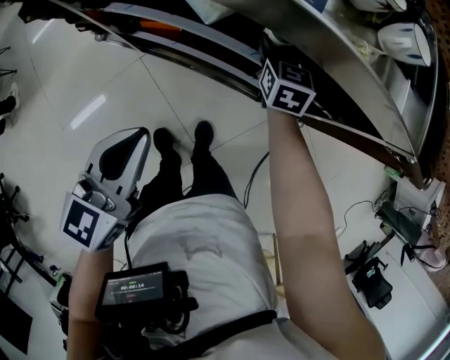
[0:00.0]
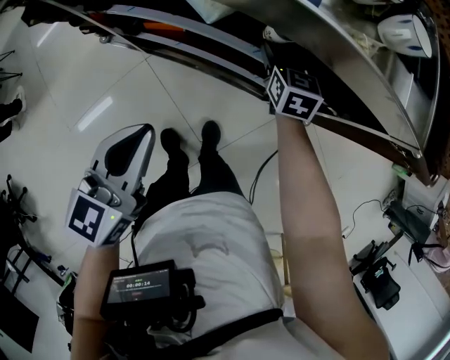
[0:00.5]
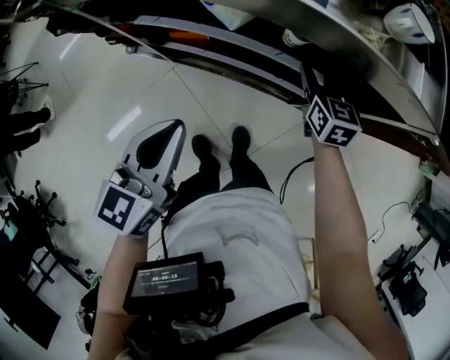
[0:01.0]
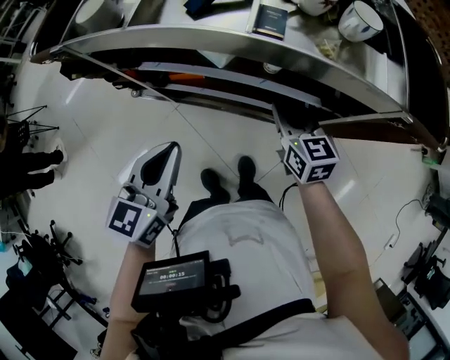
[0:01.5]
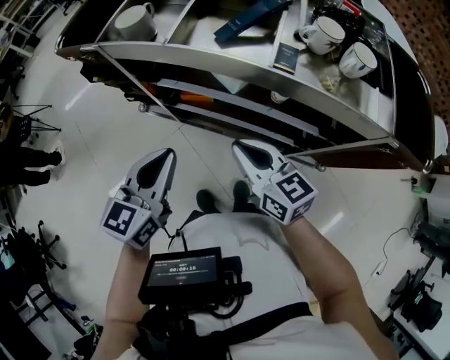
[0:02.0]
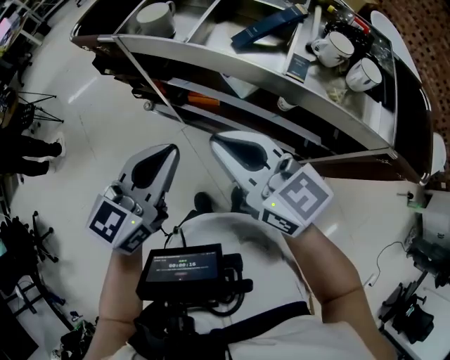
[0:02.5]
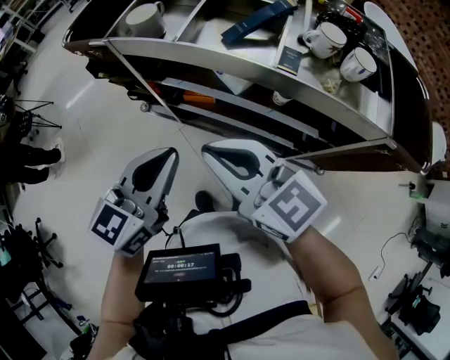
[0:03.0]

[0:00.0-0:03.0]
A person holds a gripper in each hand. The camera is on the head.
0:00.0 to 0:01.5: The right gripper shifts approximately 15 cm backward and upward, and closes up.
0:01.5 to 0:03.0: The right gripper heads to the left and upward, covering about 30 cm, and changes its angle by roughly 40 degrees; the left gripper goes roughly 10 cm upward.

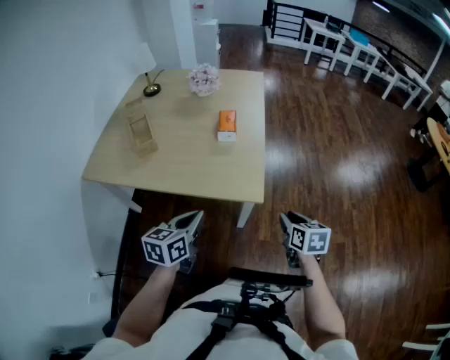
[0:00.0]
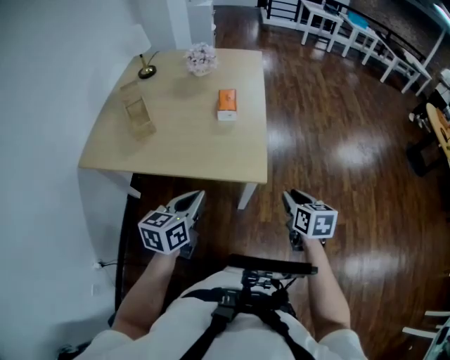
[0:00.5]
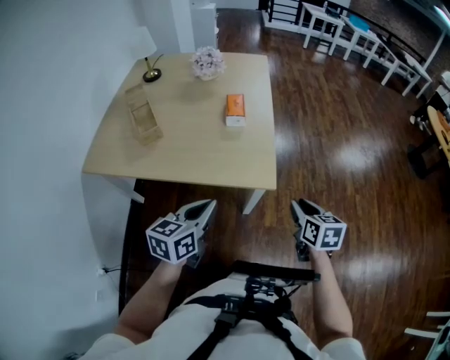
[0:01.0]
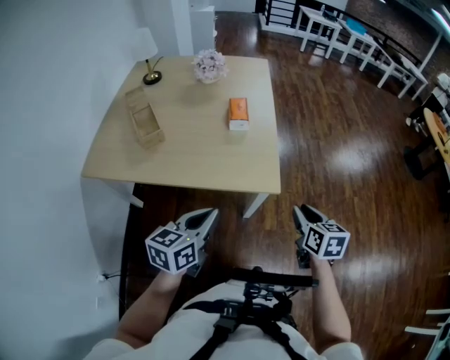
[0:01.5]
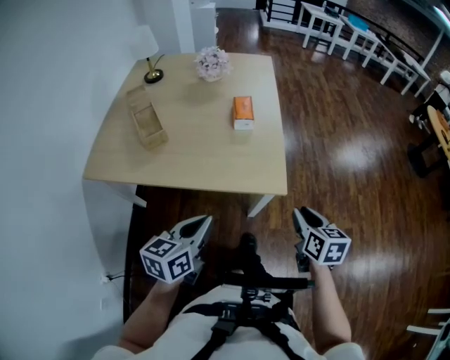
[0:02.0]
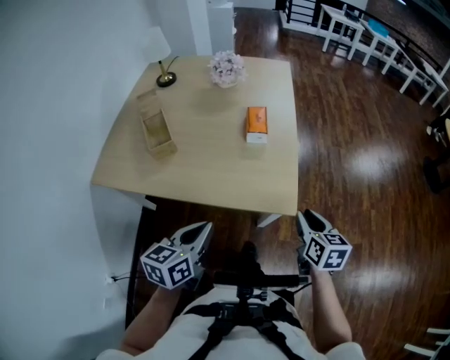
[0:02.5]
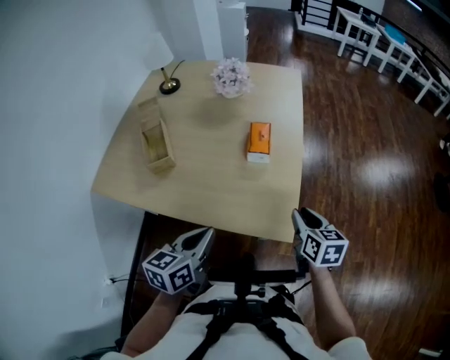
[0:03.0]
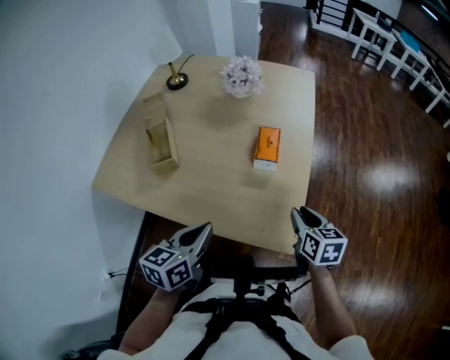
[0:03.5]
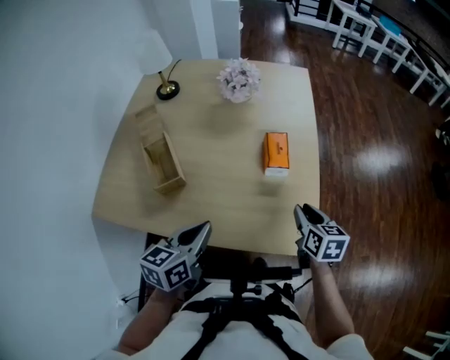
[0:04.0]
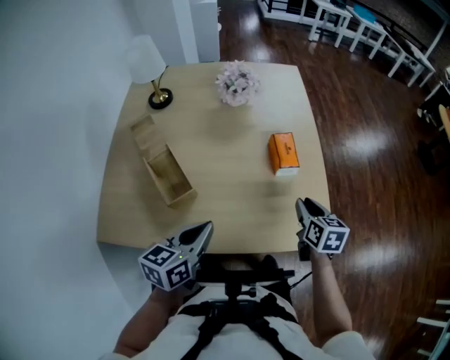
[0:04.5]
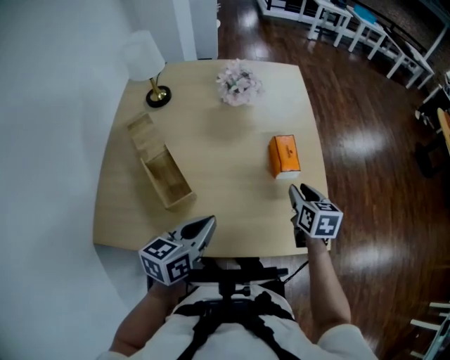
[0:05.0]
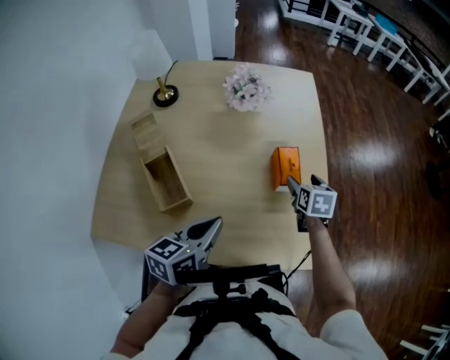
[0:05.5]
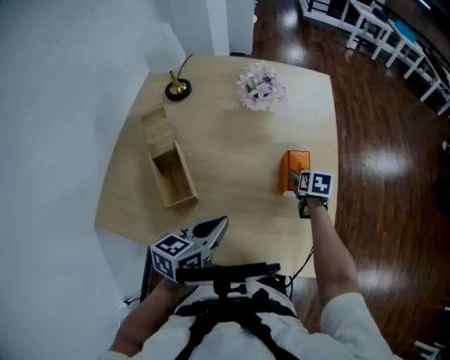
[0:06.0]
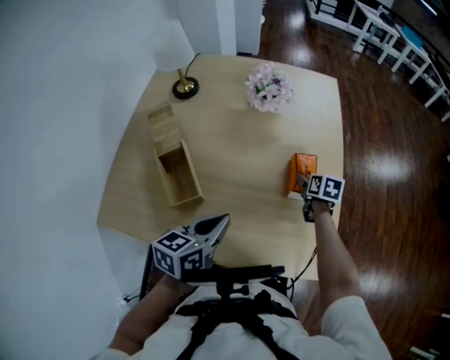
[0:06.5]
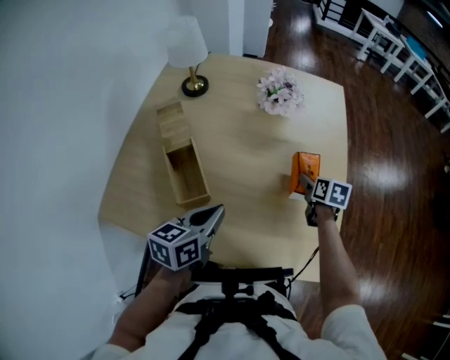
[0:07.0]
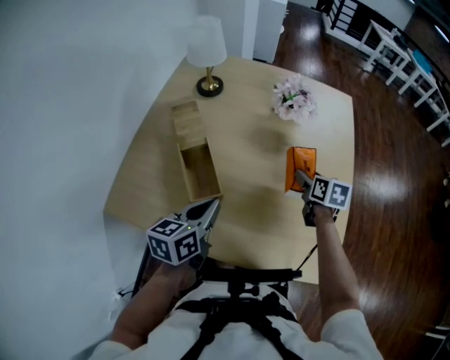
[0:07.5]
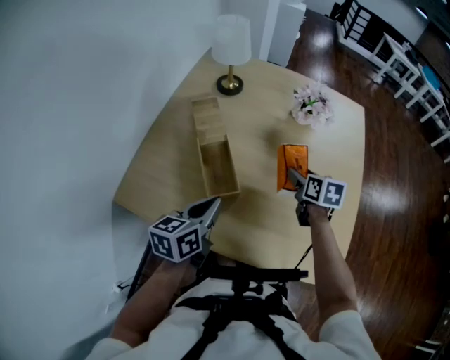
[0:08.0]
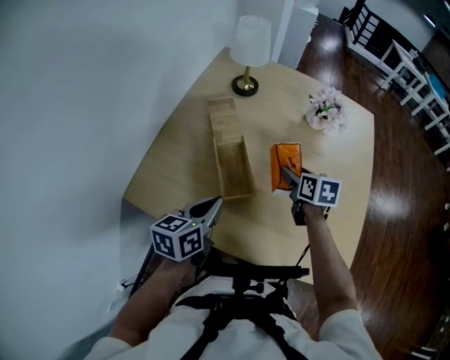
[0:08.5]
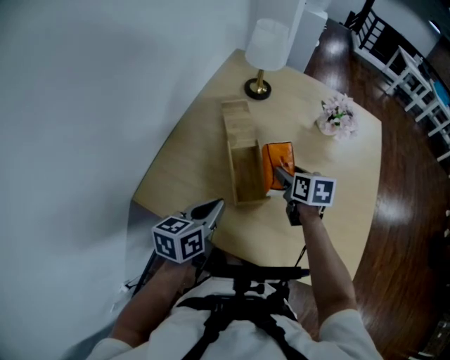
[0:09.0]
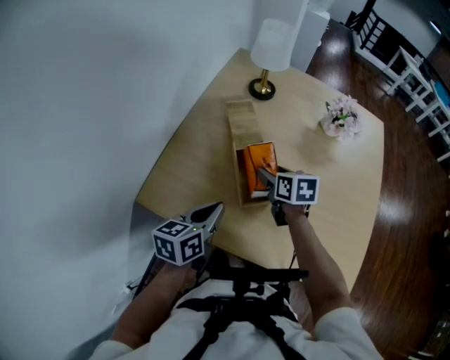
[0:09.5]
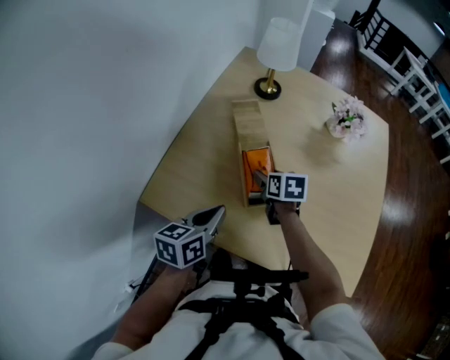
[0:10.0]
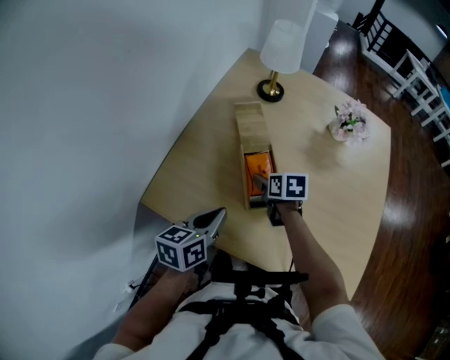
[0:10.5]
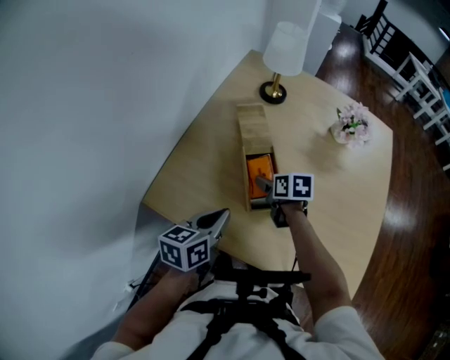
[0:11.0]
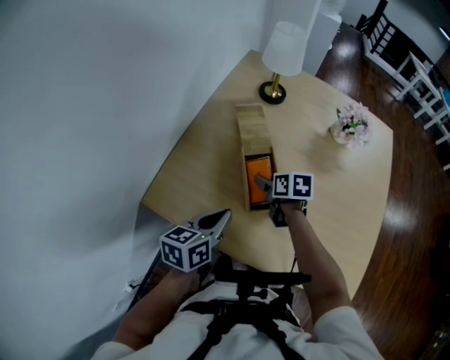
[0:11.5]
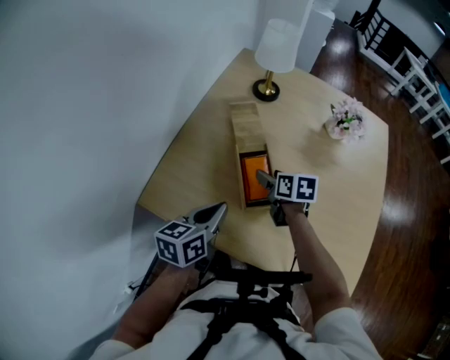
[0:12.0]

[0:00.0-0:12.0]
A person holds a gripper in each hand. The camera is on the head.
0:00.0 to 0:02.0: Both grippers move to the left, about 10 cm.
0:02.0 to 0:04.0: The left gripper heads forward and to the left, covering approximately 25 cm. Meanwhile the right gripper goes roughly 25 cm forward.
0:04.0 to 0:06.0: The left gripper moves forward, about 10 cm; the right gripper moves forward, downward and to the left, about 25 cm, and opens up.
0:06.0 to 0:08.0: The left gripper goes some 15 cm to the left. The right gripper shifts roughly 25 cm to the left and upward.
0:08.0 to 0:10.0: The right gripper travels to the left by about 25 cm. Meanwhile the left gripper travels to the left by approximately 10 cm.
0:10.0 to 0:12.0: There are only small adjustments of the grippers.

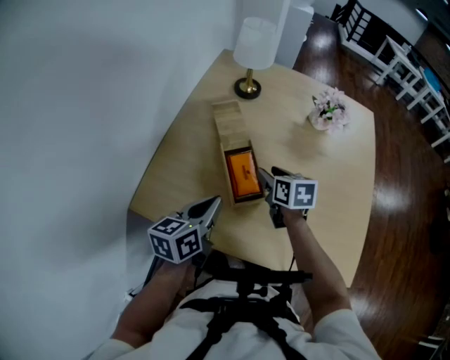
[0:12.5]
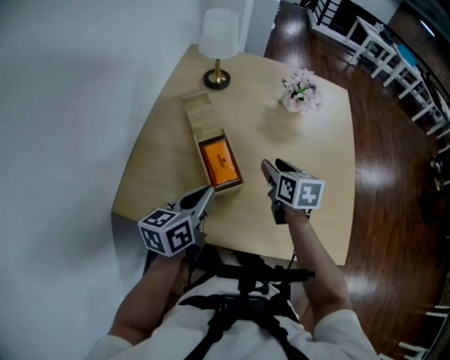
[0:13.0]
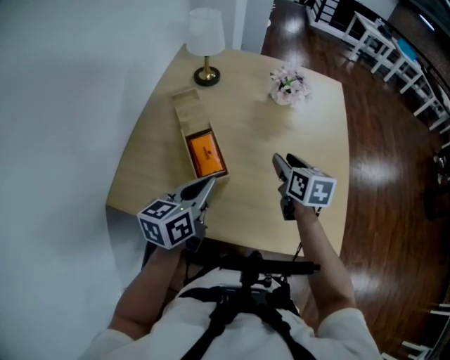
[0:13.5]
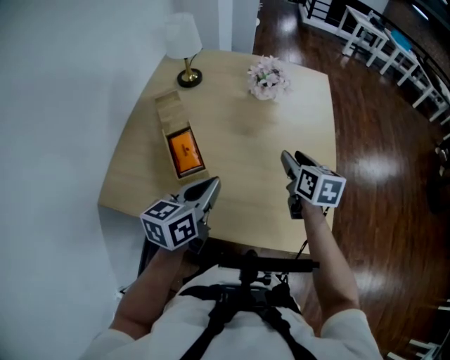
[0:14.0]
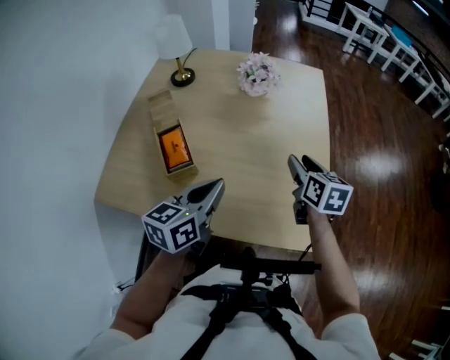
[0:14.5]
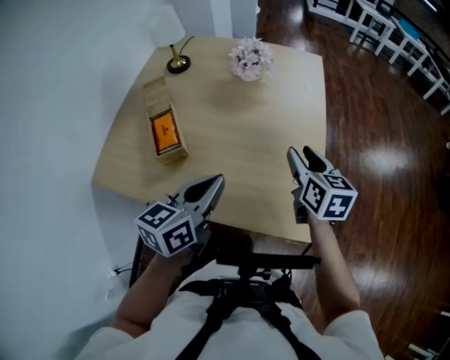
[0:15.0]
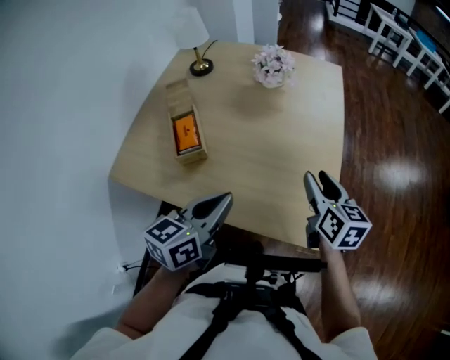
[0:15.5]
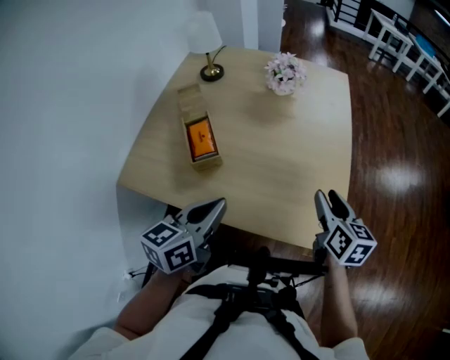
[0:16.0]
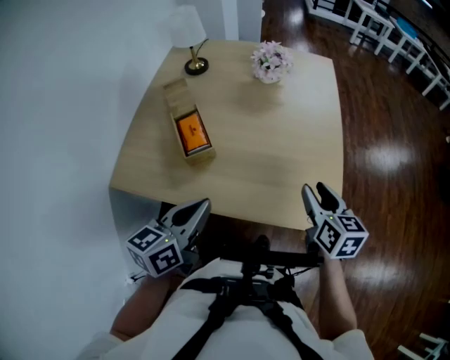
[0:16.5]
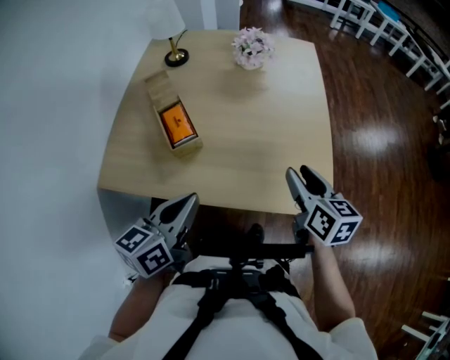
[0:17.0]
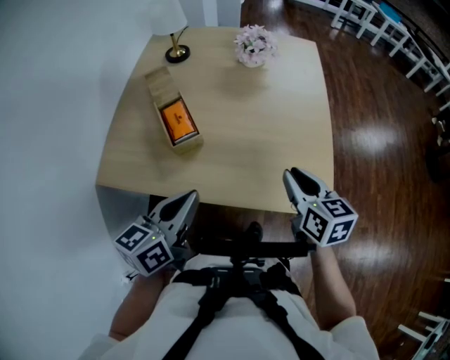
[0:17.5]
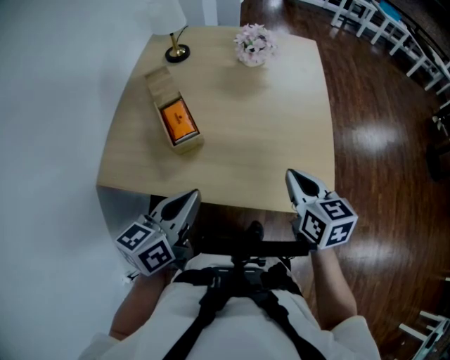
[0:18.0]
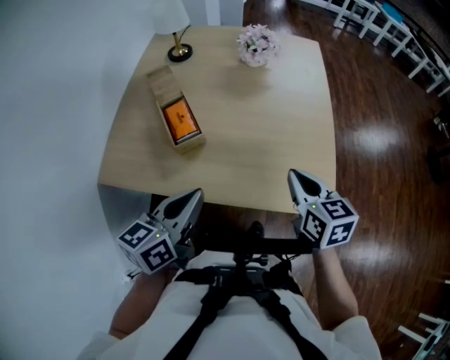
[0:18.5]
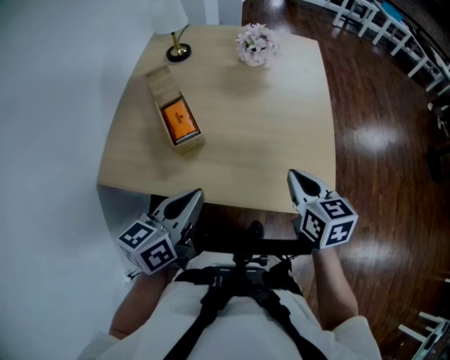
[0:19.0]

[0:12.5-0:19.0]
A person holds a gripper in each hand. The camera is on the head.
0:12.5 to 0:14.5: Both grippers travel together to the right, roughly 30 cm. The right gripper turns by roughly 20 degrees.
0:14.5 to 0:17.0: The left gripper goes about 15 cm backward and to the left. The right gripper moves backward, approximately 15 cm.
0:17.0 to 0:19.0: The right gripper closes.

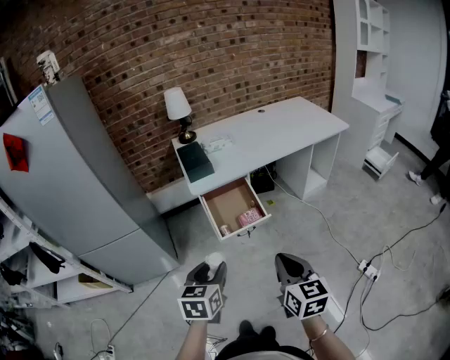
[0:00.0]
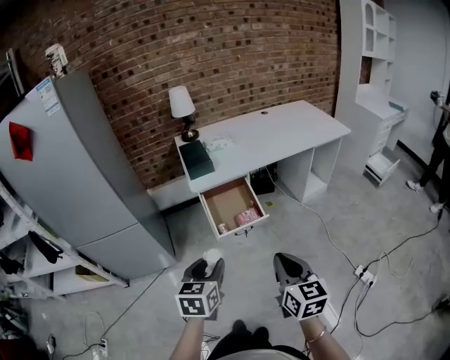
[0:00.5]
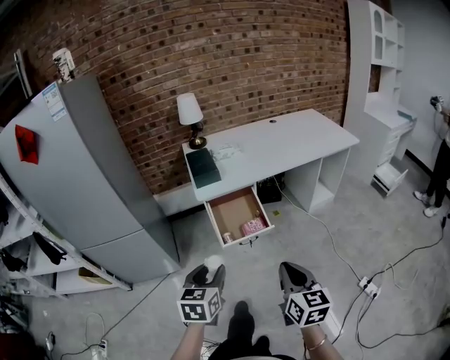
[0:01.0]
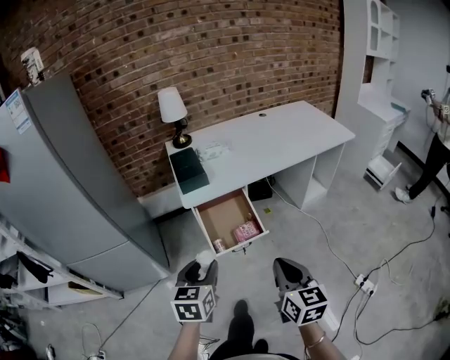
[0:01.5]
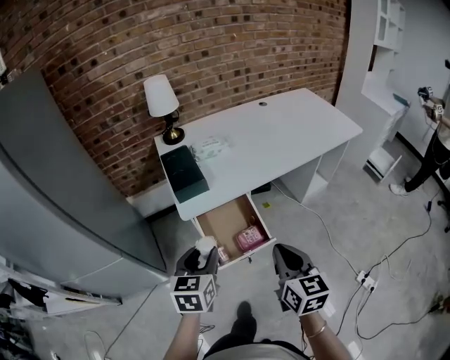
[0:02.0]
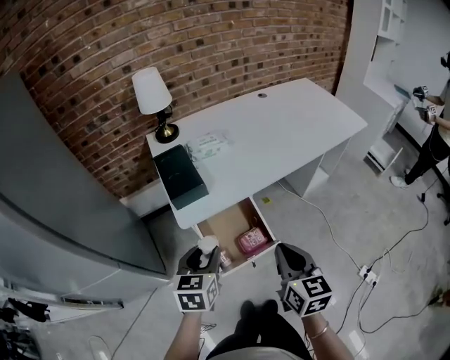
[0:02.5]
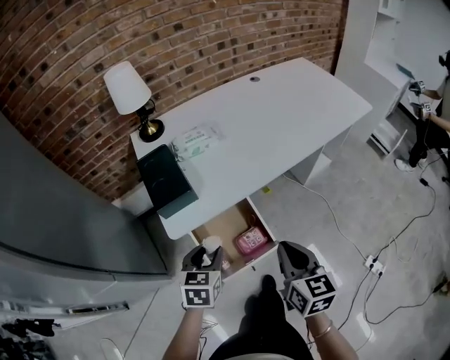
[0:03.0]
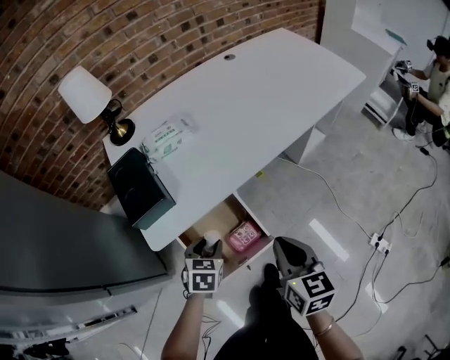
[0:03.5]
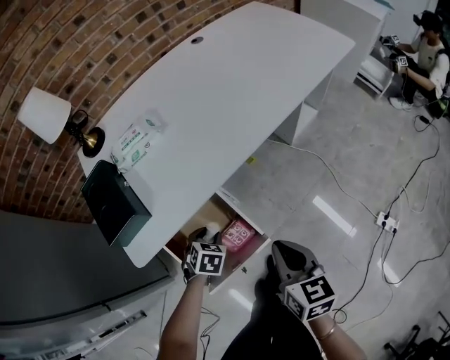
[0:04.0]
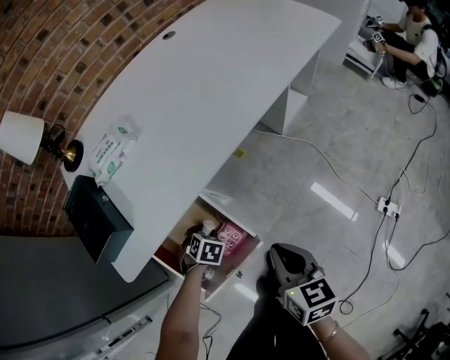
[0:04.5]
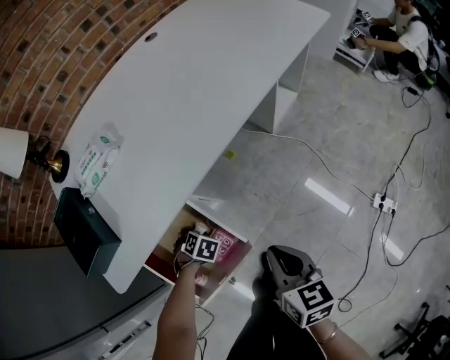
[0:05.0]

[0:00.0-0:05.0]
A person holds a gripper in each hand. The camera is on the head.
0:00.0 to 0:02.5: Both grippers travel together forward, about 40 cm.
0:02.5 to 0:05.0: The right gripper is displaced downward by about 25 cm, and rotates some 20 degrees. The left gripper goes about 40 cm downward, and angles its fingers downward, by roughly 50 degrees.
